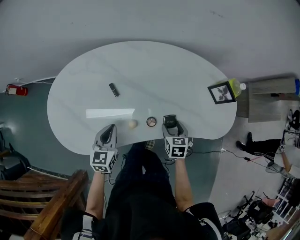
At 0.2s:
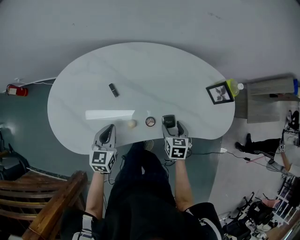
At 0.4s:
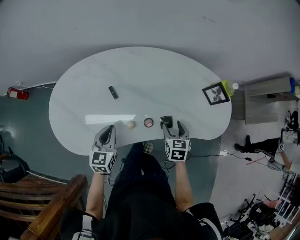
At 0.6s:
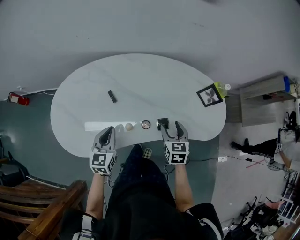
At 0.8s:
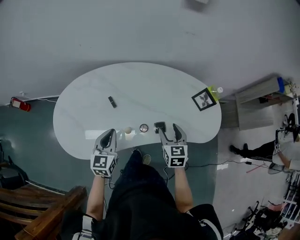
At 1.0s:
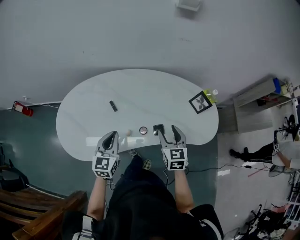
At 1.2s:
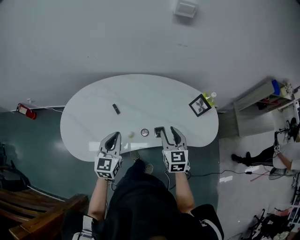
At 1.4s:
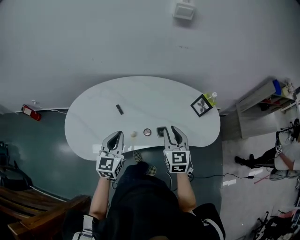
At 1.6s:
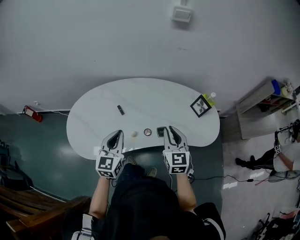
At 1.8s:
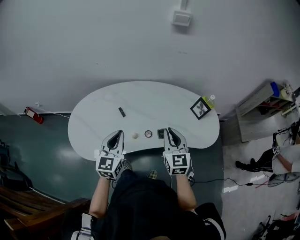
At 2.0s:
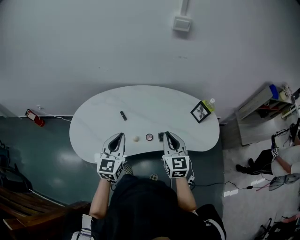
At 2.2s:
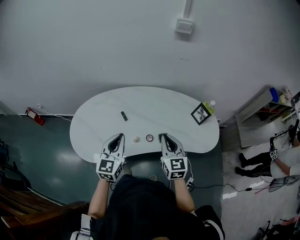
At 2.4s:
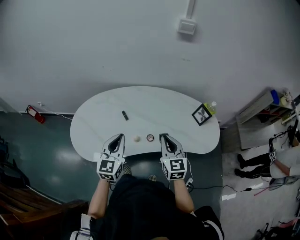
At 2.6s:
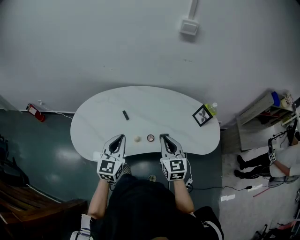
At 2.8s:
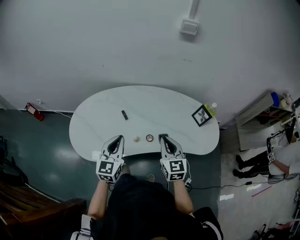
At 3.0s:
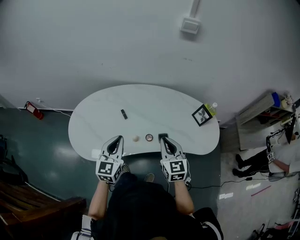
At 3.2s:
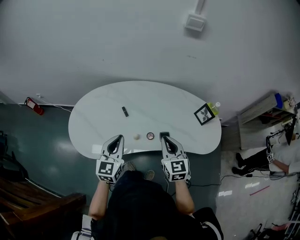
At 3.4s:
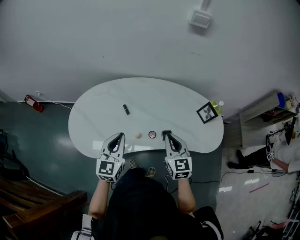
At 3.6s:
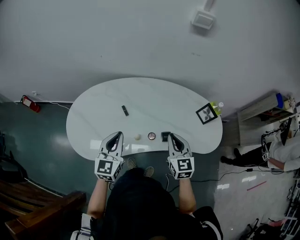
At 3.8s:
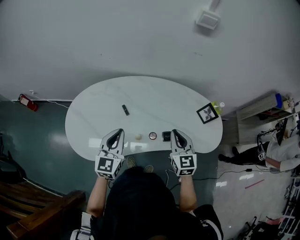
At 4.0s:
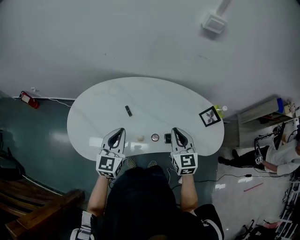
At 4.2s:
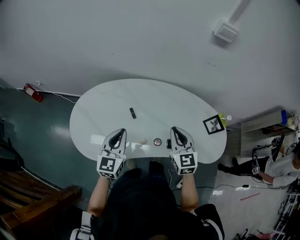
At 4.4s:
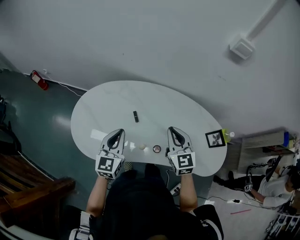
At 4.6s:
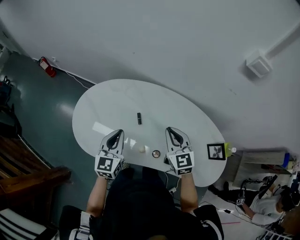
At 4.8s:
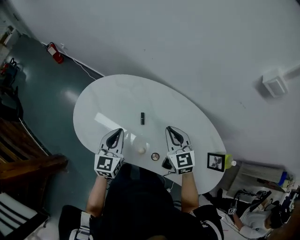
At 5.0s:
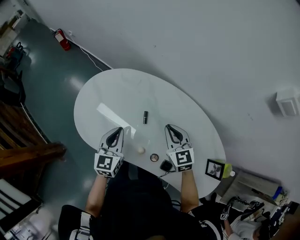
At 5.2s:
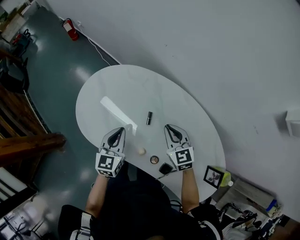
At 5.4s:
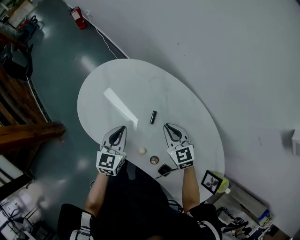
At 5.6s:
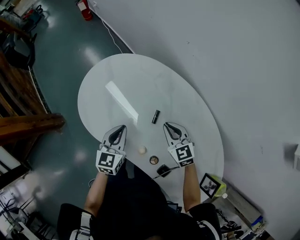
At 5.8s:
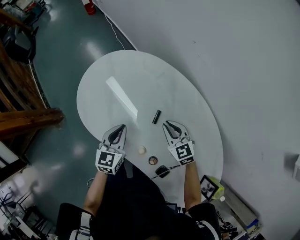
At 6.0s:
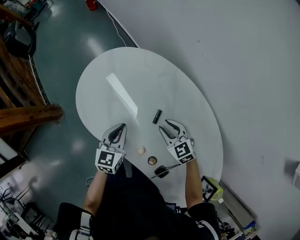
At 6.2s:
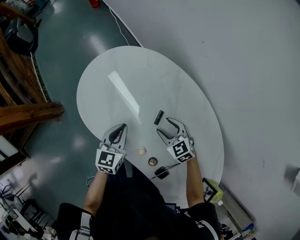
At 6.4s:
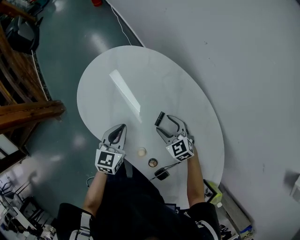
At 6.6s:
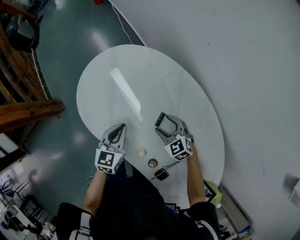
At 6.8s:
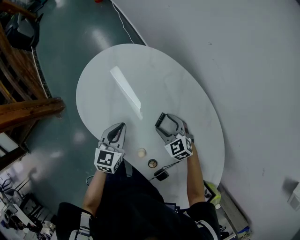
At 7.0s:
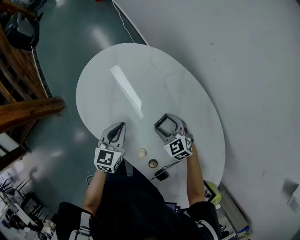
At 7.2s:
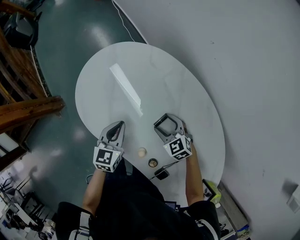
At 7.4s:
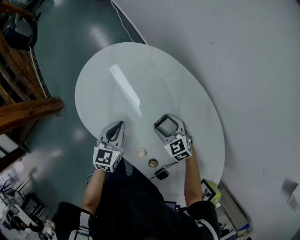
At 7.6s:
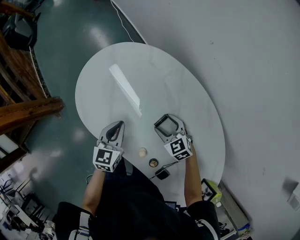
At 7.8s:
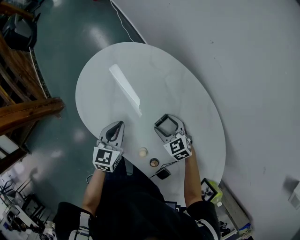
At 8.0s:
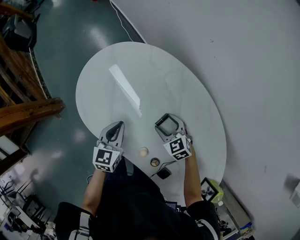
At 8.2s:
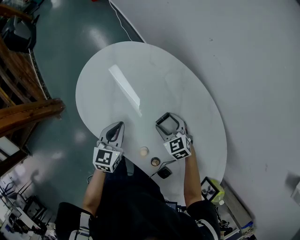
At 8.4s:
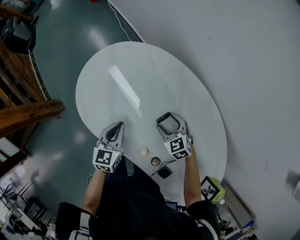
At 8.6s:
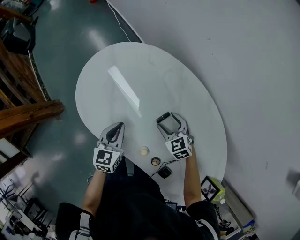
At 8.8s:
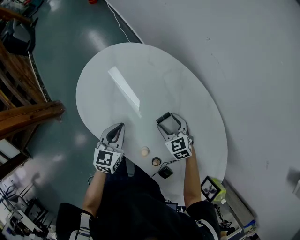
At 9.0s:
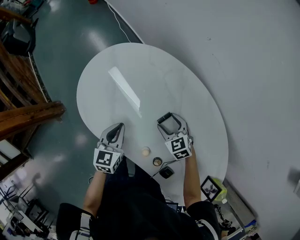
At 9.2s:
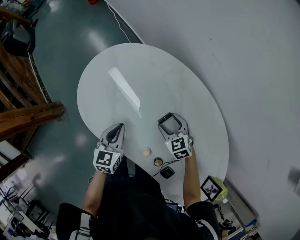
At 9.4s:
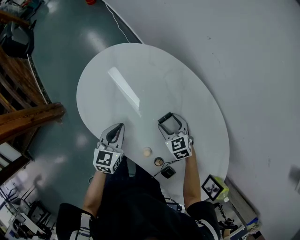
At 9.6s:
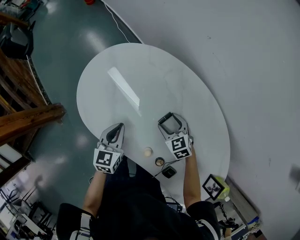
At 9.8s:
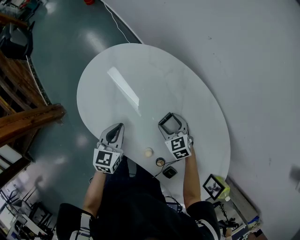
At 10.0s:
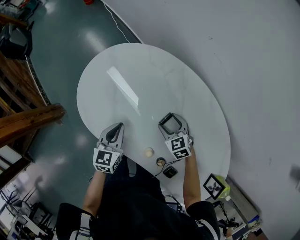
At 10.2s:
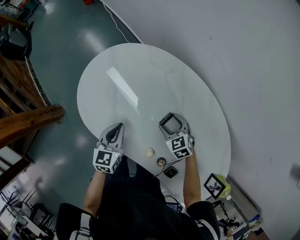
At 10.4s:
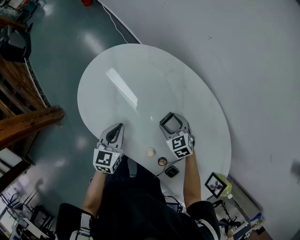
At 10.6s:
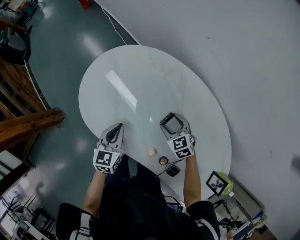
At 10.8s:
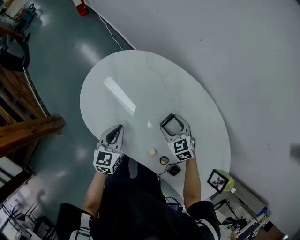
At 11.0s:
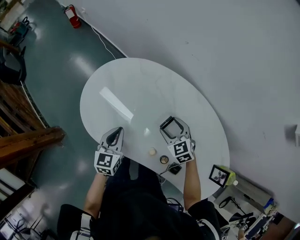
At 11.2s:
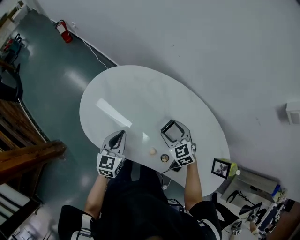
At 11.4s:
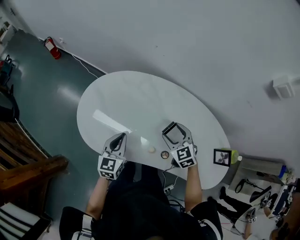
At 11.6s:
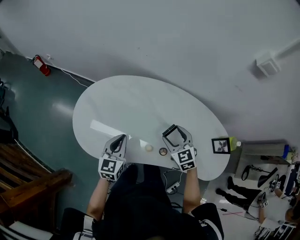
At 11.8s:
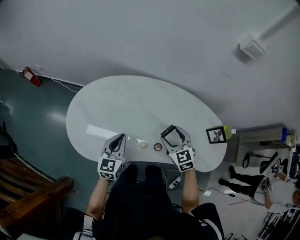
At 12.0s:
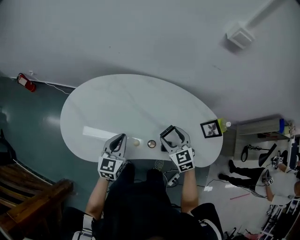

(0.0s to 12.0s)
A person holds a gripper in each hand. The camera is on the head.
0.0s - 1.6s: The two grippers go roughly 25 cm upward. The left gripper turns by approximately 20 degrees. Meanwhile the right gripper tips its fingers upward by roughly 40 degrees, and closes up.
1.6s - 3.0s: There are only small adjustments of the grippers.
3.0s - 4.4s: The left gripper travels forward and to the left by some 15 cm. Meanwhile the right gripper is displaced forward by some 15 cm.
4.4s - 6.0s: Both grippers move downward, about 20 cm. The left gripper changes its angle by roughly 40 degrees, while the right gripper changes its angle by about 60 degrees.
6.0s - 7.6s: The right gripper moves downward, approximately 5 cm, and opens its fingers.
7.6s - 10.4s: The grippers move only a little.
10.4s - 12.0s: The right gripper ends up approximately 30 cm from where it was, and changes its angle by about 50 degrees. Meanwhile the left gripper shifts by roughly 20 cm, and changes its angle by roughly 40 degrees.

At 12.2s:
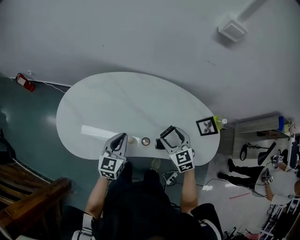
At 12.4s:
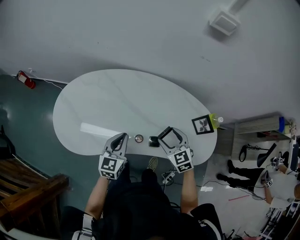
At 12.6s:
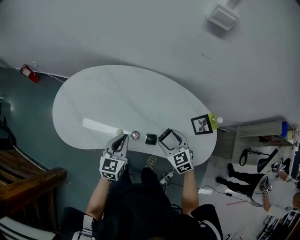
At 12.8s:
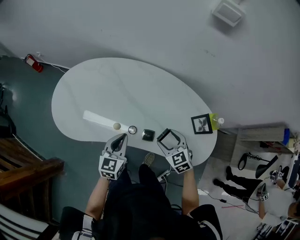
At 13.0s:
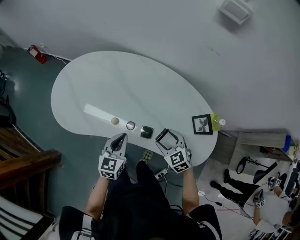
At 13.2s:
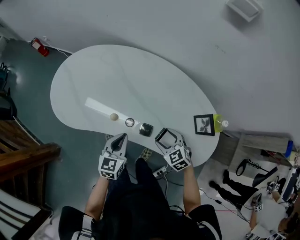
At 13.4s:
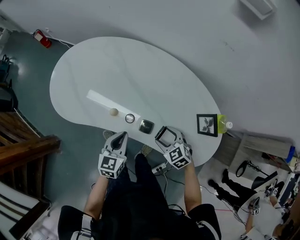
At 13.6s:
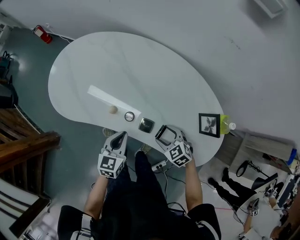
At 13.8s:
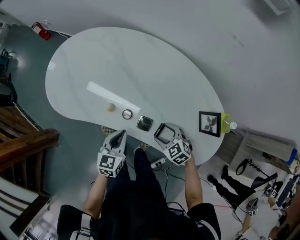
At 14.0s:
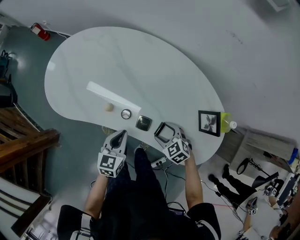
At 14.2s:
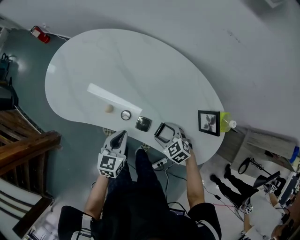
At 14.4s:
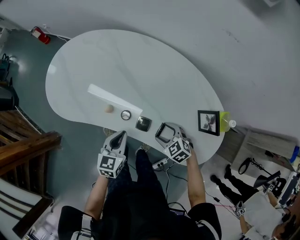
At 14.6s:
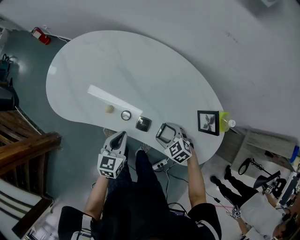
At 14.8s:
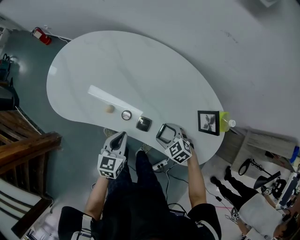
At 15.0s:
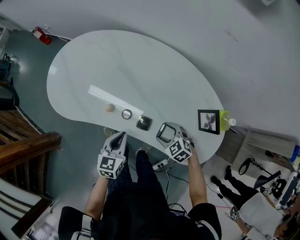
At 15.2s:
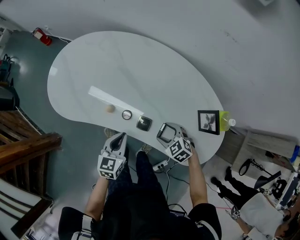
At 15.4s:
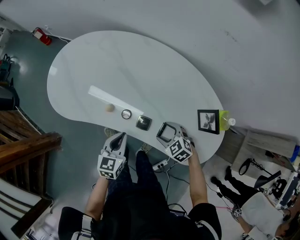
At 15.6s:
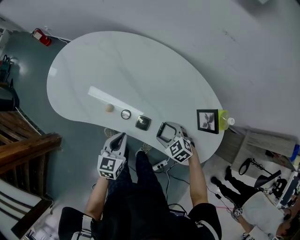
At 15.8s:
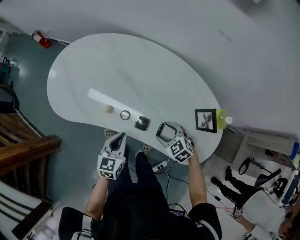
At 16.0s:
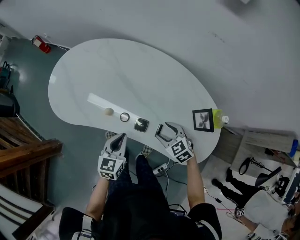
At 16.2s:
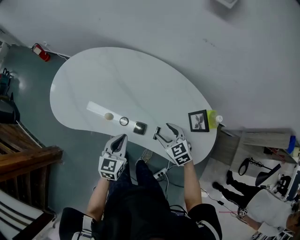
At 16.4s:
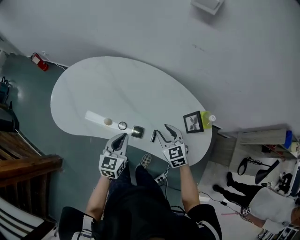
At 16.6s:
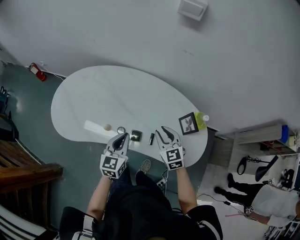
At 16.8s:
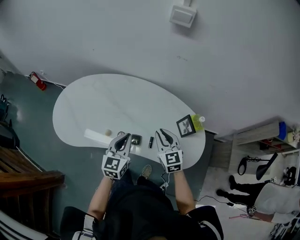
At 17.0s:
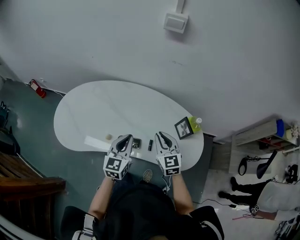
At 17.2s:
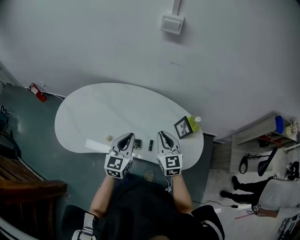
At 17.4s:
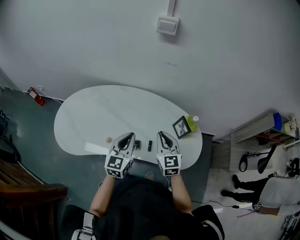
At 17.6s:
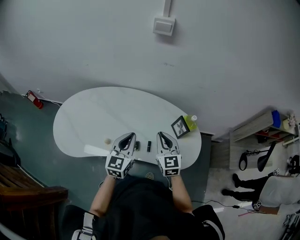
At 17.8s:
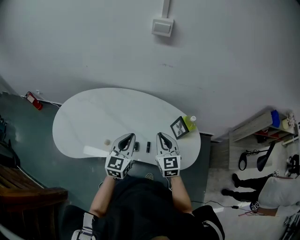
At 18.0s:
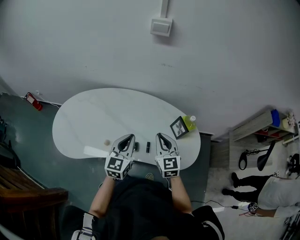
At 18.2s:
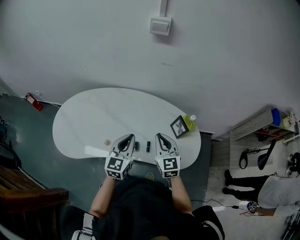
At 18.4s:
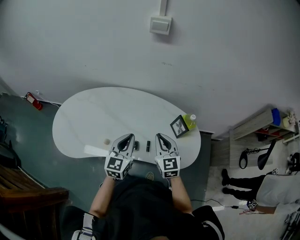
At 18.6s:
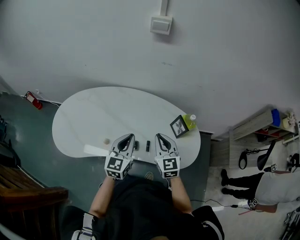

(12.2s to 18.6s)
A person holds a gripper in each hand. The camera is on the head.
12.2s - 13.8s: The left gripper moves approximately 20 cm, and changes its angle by roughly 20 degrees. The right gripper travels downward by approximately 20 cm, and turns by roughly 40 degrees.
13.8s - 15.4s: The grippers stay close to where they were, moving slightly.
15.4s - 17.0s: Both grippers travel together upward, some 20 cm. The right gripper angles its fingers upward, by about 30 degrees, and closes. Meanwhile the left gripper changes its angle by approximately 20 degrees.
17.0s - 18.6s: The grippers move only a little.

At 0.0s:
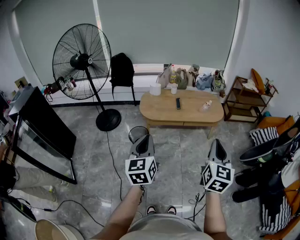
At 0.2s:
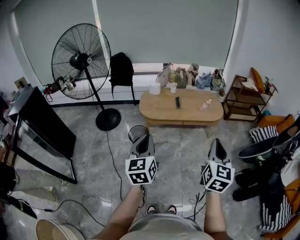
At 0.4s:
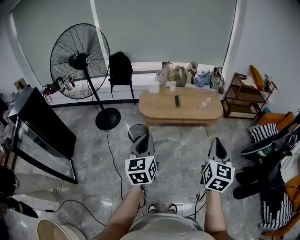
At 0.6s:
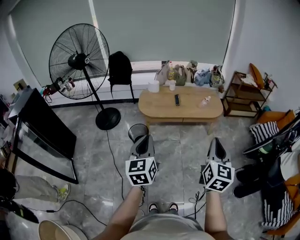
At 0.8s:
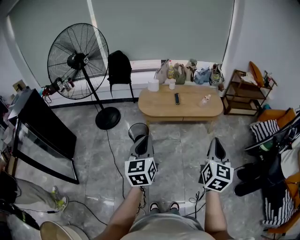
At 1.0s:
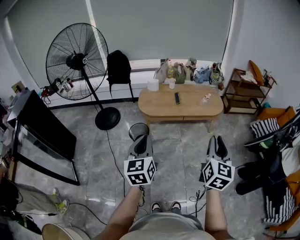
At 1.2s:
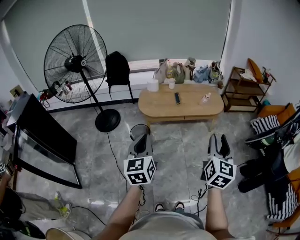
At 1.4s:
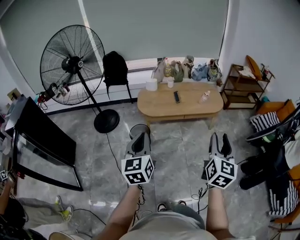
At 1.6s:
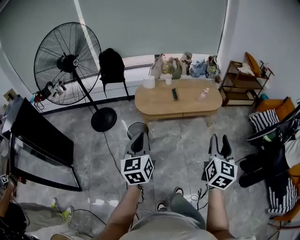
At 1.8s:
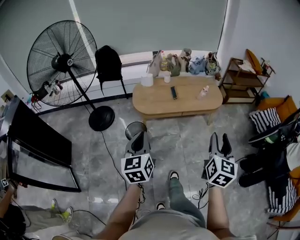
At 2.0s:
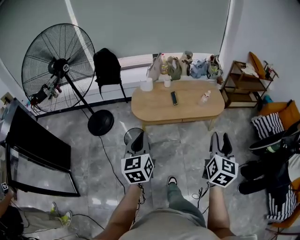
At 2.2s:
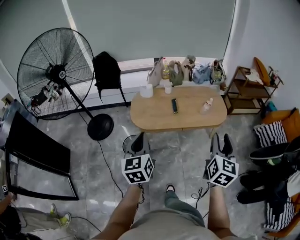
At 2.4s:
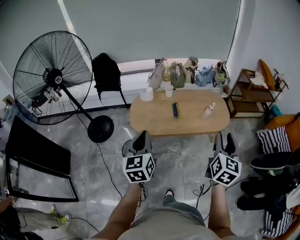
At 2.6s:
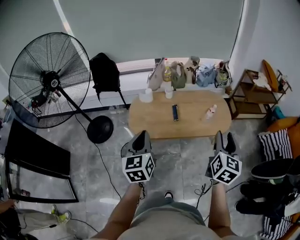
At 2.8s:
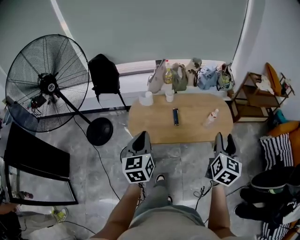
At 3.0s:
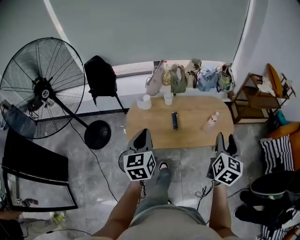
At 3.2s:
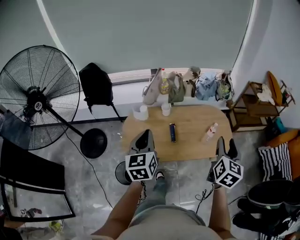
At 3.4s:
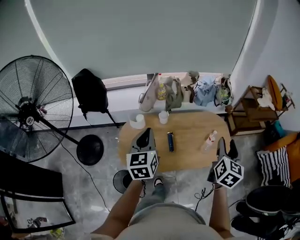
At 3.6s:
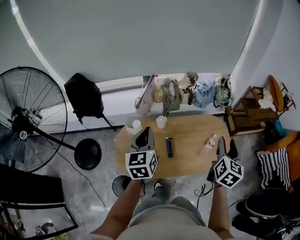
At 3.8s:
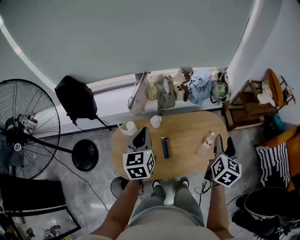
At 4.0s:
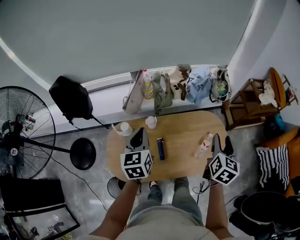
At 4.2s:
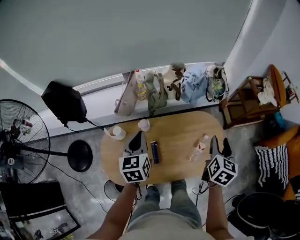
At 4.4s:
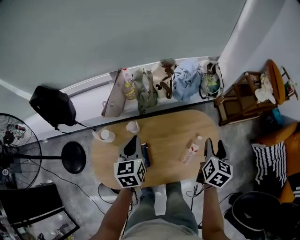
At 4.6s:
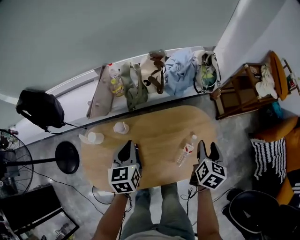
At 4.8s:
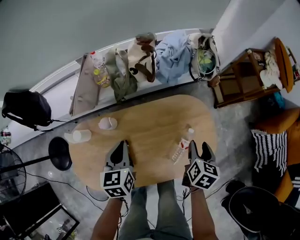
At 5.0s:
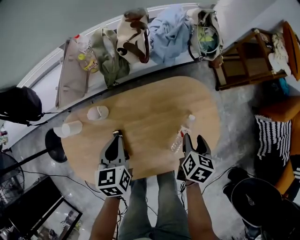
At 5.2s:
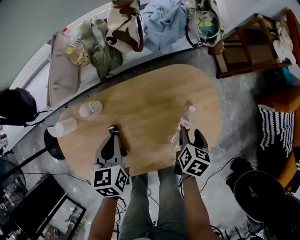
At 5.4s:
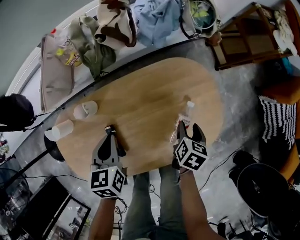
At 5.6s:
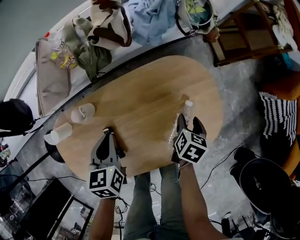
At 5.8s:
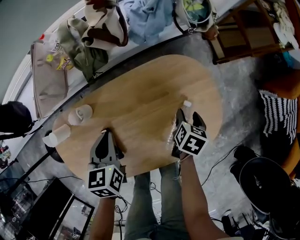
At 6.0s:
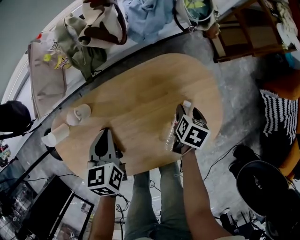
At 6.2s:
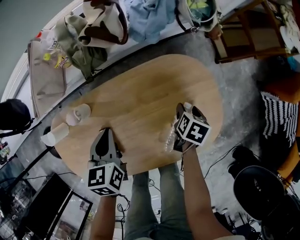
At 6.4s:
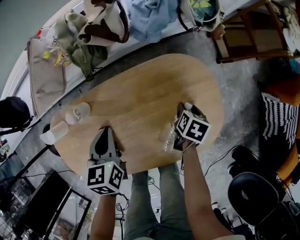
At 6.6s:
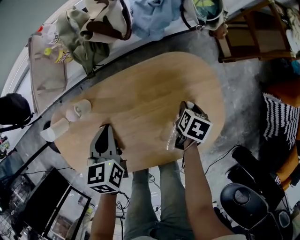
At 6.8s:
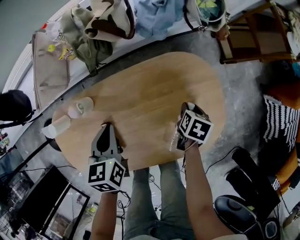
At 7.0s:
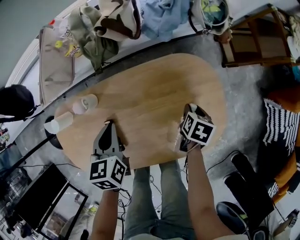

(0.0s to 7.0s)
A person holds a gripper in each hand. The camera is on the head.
0.0s - 1.4s: The left gripper travels to the left by roughly 5 cm. The right gripper opens its fingers.
1.4s - 2.8s: Both grippers travel together forward, roughly 40 cm.
2.8s - 4.2s: The two grippers travel together, forward, approximately 40 cm.
4.2s - 5.6s: The left gripper moves downward and to the right, roughly 30 cm, and swivels some 20 degrees. Meanwhile the right gripper shifts approximately 35 cm downward, and angles its fingers downward, by about 30 degrees.
5.6s - 7.0s: The right gripper shifts by approximately 5 cm.
